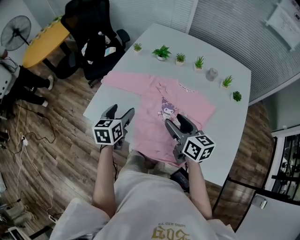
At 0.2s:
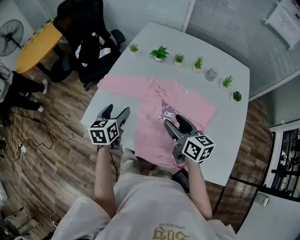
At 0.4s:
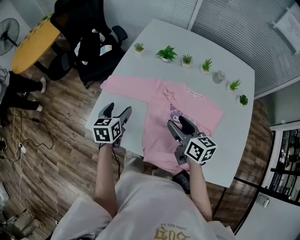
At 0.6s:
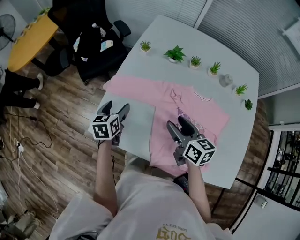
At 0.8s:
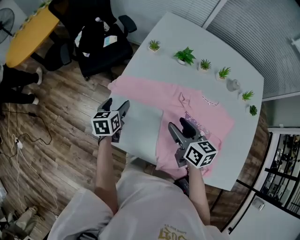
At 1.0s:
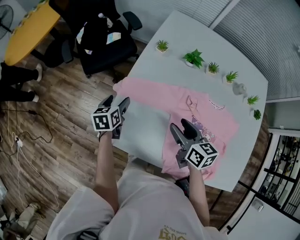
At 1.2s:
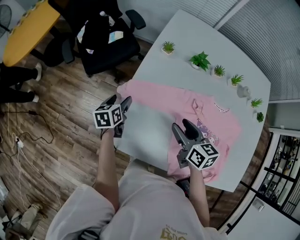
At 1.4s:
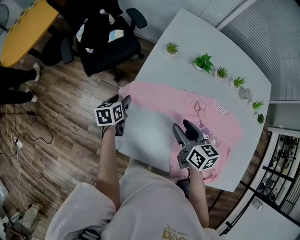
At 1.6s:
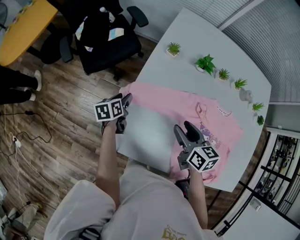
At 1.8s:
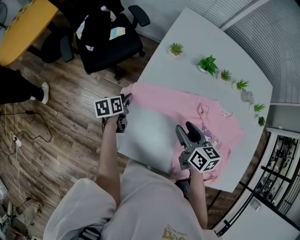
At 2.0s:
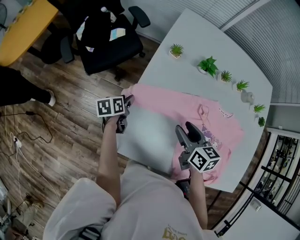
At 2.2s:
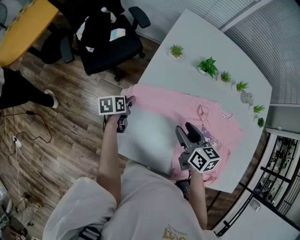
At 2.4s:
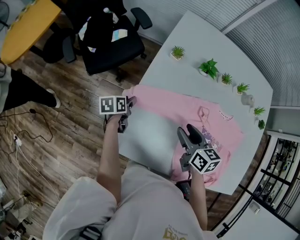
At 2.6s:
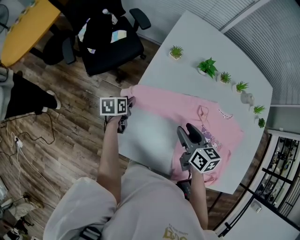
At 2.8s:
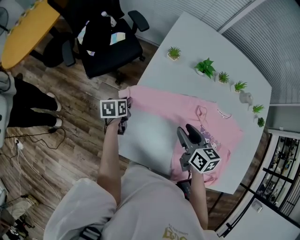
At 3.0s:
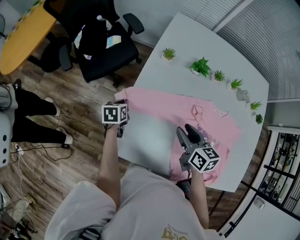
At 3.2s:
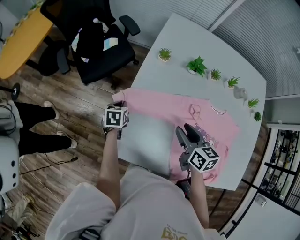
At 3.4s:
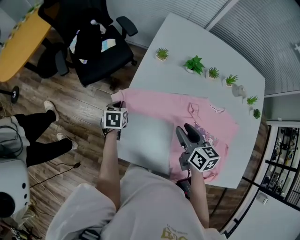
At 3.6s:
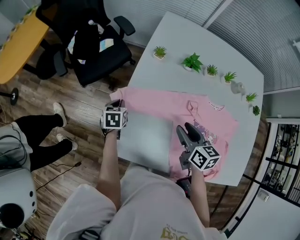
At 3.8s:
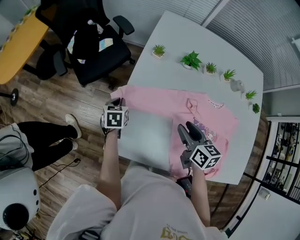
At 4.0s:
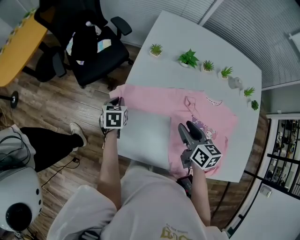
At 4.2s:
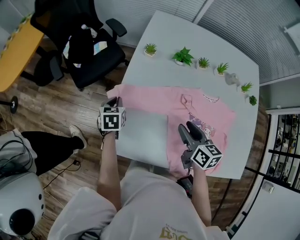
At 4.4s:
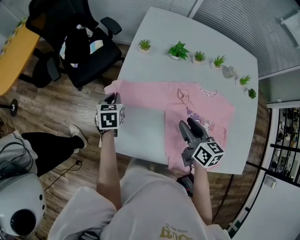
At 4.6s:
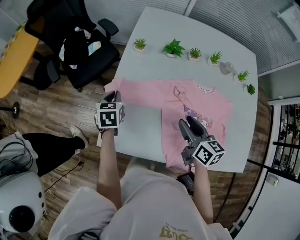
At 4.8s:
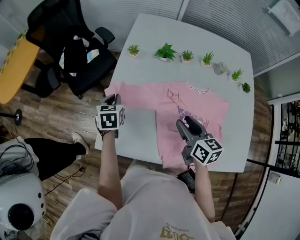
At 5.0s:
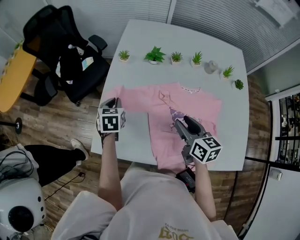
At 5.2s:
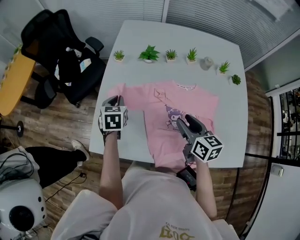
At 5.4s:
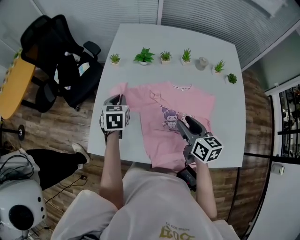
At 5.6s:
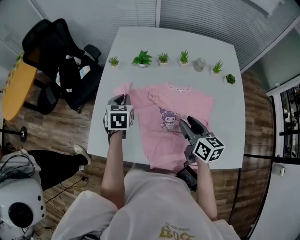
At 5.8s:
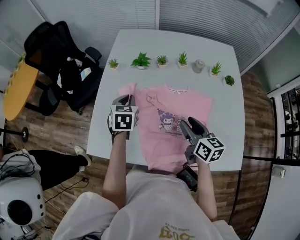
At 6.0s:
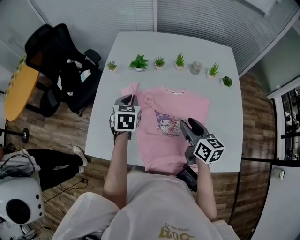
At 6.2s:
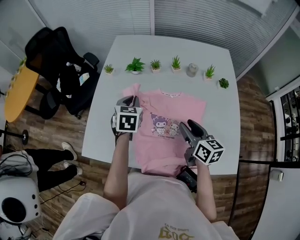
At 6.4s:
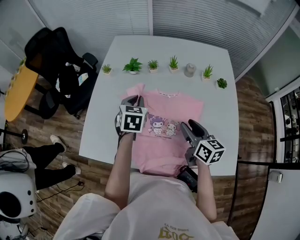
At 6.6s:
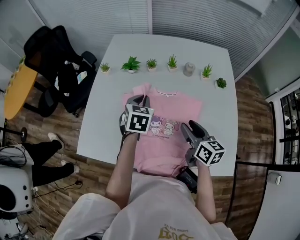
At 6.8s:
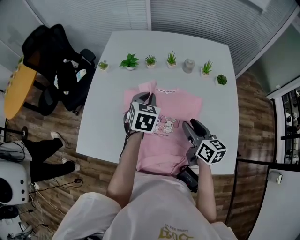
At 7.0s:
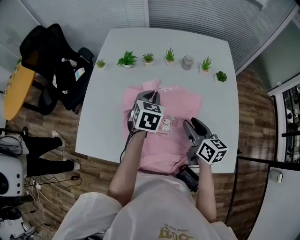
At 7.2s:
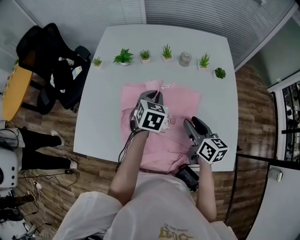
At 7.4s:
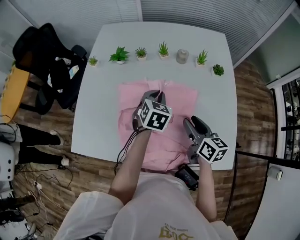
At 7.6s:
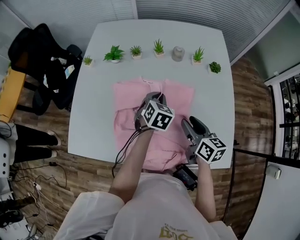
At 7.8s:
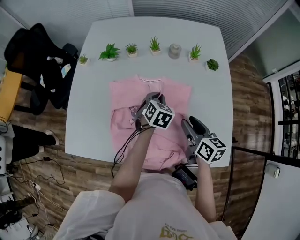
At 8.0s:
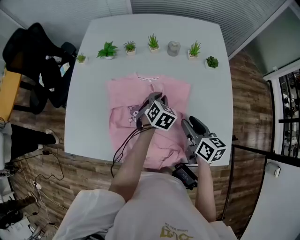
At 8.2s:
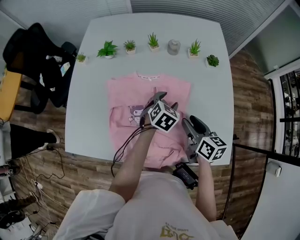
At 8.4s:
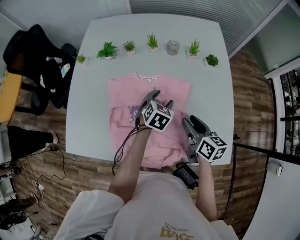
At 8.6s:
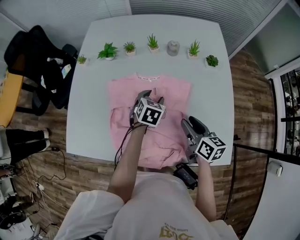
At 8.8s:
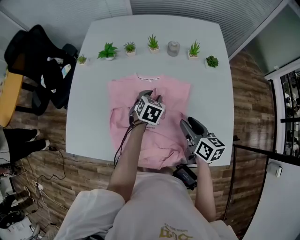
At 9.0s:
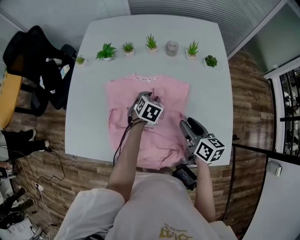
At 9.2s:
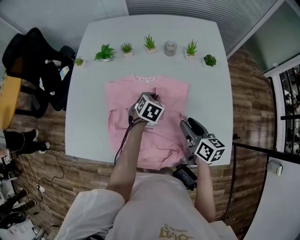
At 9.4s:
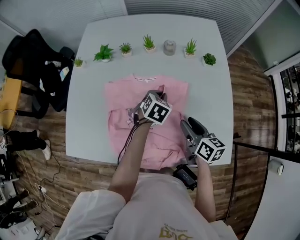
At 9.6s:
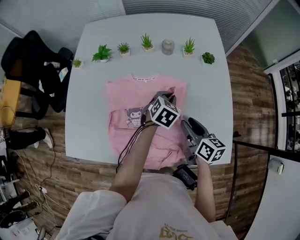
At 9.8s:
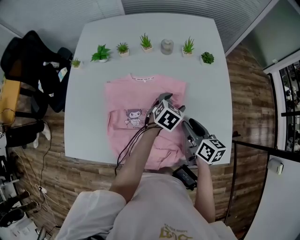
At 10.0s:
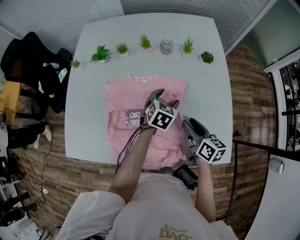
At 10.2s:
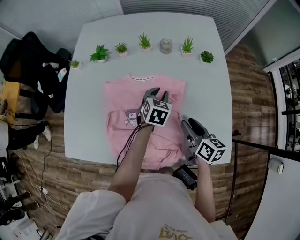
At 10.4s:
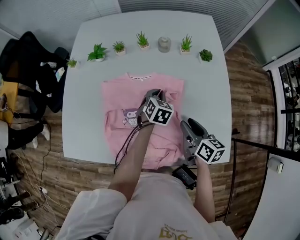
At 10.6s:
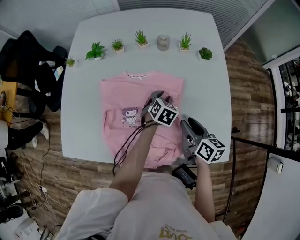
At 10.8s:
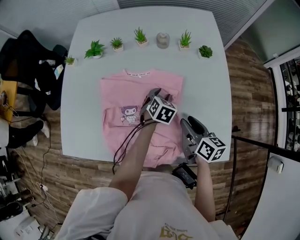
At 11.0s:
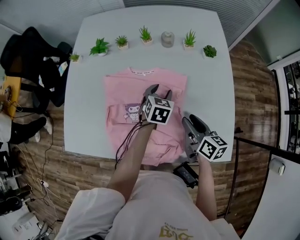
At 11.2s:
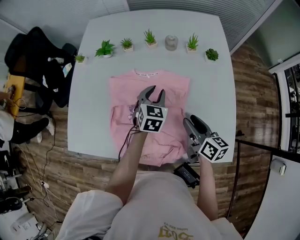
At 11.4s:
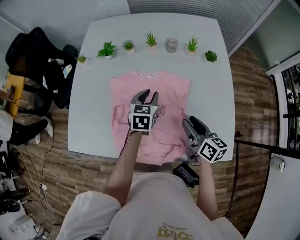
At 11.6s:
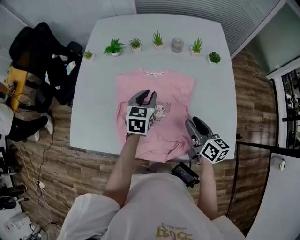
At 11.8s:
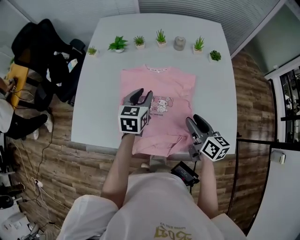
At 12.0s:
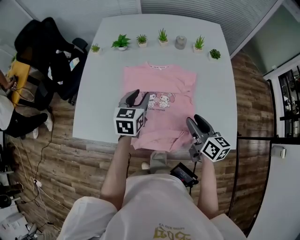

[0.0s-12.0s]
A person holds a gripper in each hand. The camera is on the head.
0.0s to 1.6s: The two grippers go about 35 cm forward, to the left and downward. The left gripper turns by roughly 30 degrees, and closes up.
1.6s to 3.0s: The left gripper closes up.
3.0s to 4.4s: The right gripper moves to the right and backward, some 10 cm; the left gripper moves upward, approximately 10 cm, and turns by roughly 20 degrees.
4.4s to 6.0s: The left gripper moves to the right and upward, approximately 30 cm. The right gripper shifts some 20 cm to the right.
6.0s to 7.6s: The left gripper is displaced to the right by approximately 25 cm, while the right gripper goes roughly 10 cm to the right.
7.6s to 9.0s: The left gripper heads downward, covering about 10 cm, and opens, then closes once more.
9.0s to 10.4s: The left gripper moves to the right, some 5 cm, and opens and closes again.
10.4s to 12.0s: The left gripper shifts roughly 25 cm to the left, upward and backward, changes its angle by some 30 degrees, and opens its fingers; the right gripper travels backward, to the left and upward by some 10 cm.

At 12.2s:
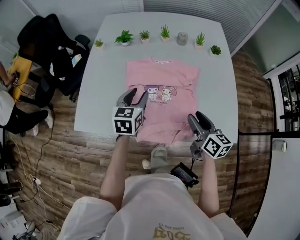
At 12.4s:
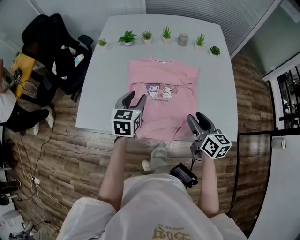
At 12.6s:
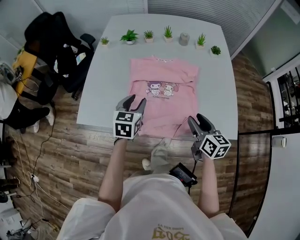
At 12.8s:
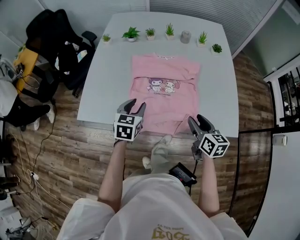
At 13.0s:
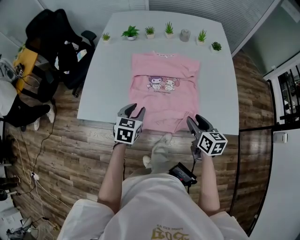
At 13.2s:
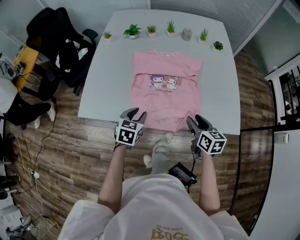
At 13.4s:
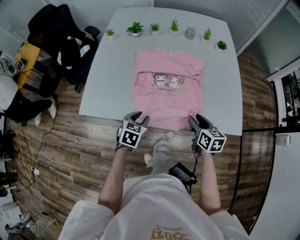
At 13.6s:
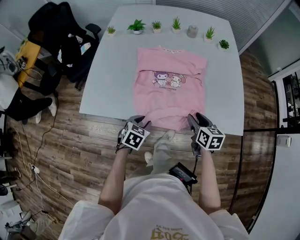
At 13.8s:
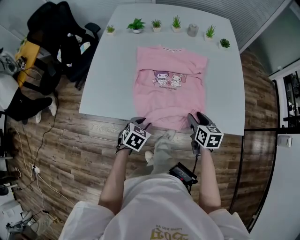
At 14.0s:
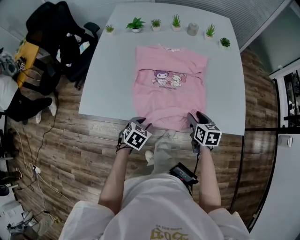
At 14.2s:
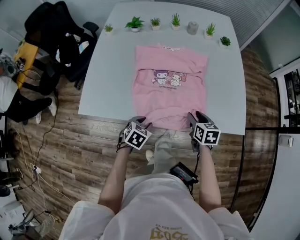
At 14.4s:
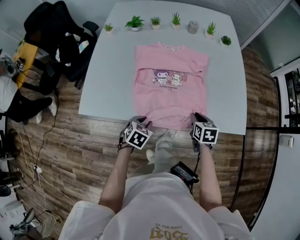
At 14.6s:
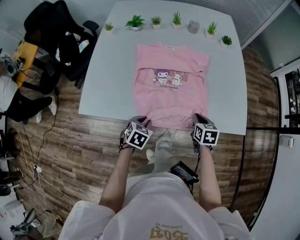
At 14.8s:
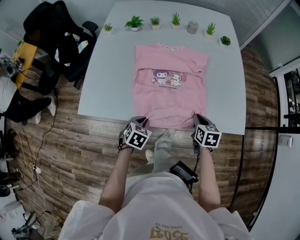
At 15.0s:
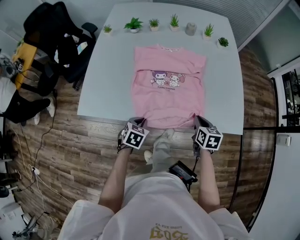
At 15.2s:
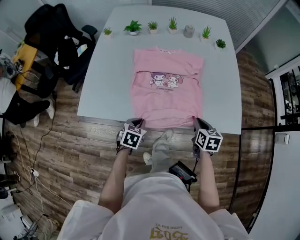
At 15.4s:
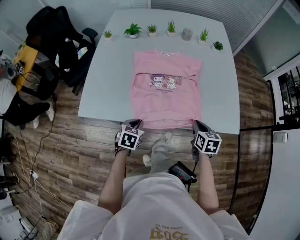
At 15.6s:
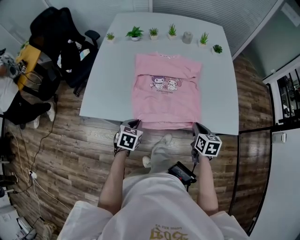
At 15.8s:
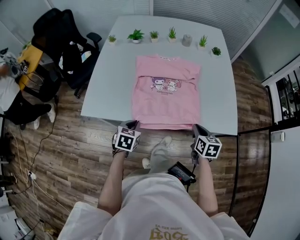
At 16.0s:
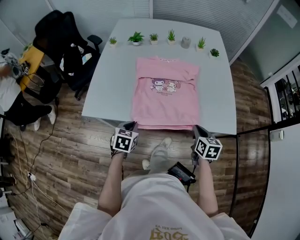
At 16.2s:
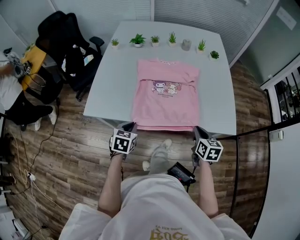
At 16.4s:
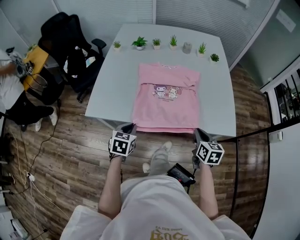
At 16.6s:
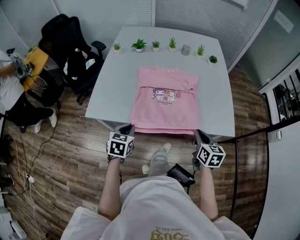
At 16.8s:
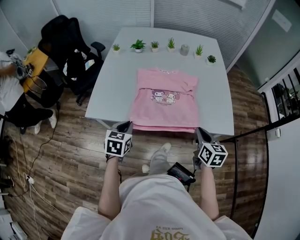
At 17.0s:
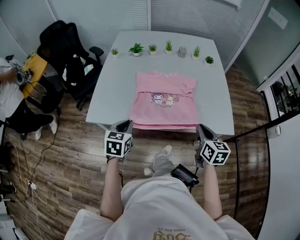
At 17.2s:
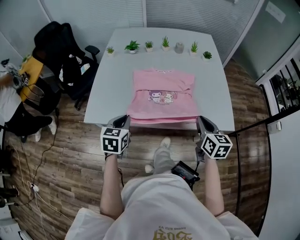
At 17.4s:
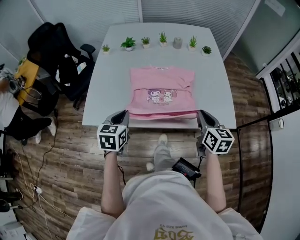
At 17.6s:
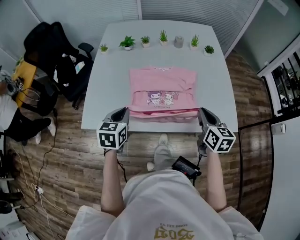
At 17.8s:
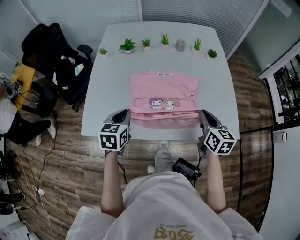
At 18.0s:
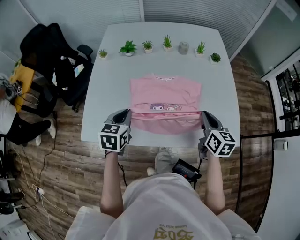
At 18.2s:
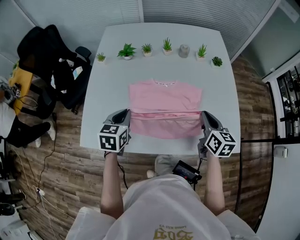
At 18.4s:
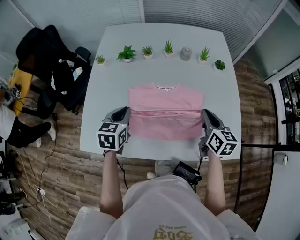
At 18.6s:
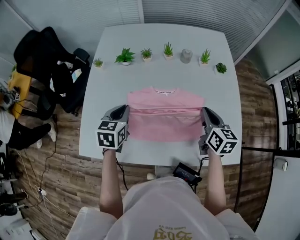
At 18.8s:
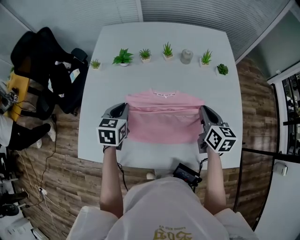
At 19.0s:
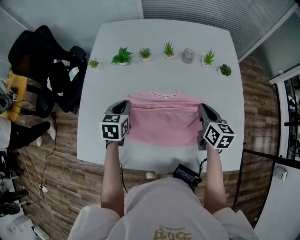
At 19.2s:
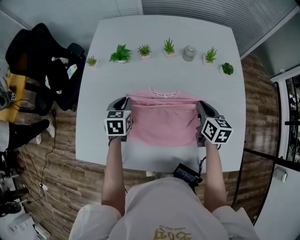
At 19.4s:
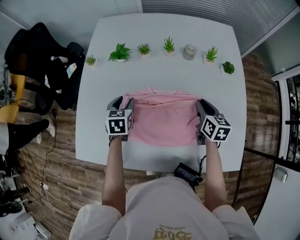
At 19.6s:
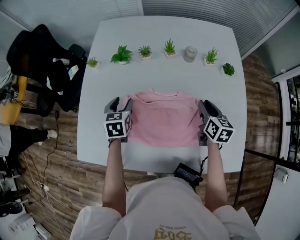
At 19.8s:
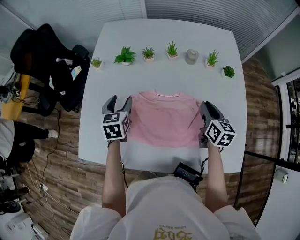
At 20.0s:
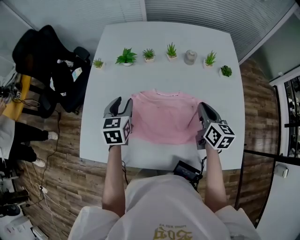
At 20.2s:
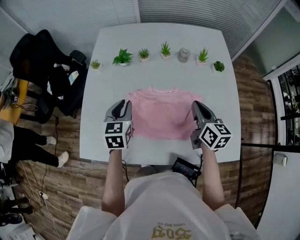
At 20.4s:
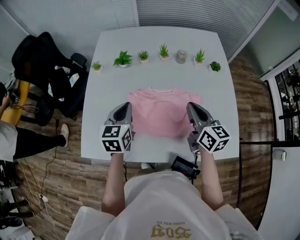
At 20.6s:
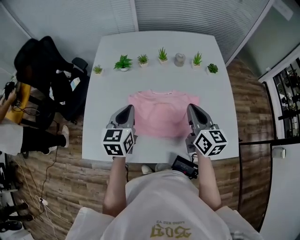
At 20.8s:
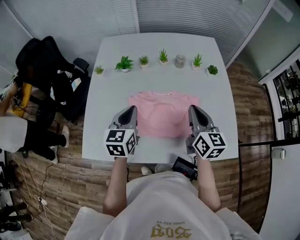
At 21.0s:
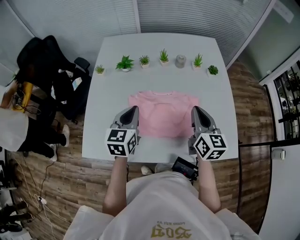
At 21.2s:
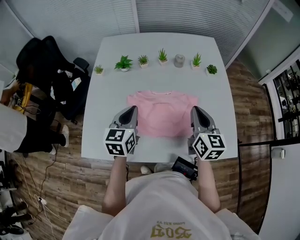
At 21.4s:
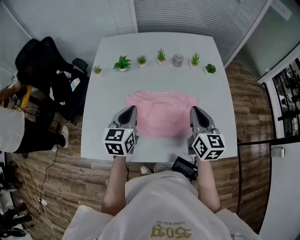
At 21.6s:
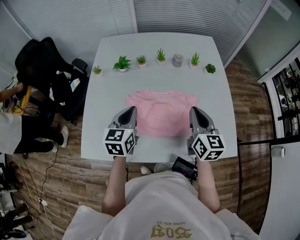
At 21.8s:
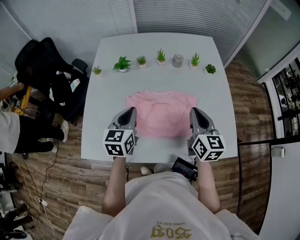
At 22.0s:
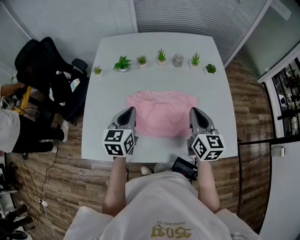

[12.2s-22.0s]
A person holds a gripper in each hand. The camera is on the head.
12.2s to 13.6s: The left gripper heads backward and downward, covering about 25 cm, and turns by approximately 30 degrees. Meanwhile the right gripper shifts about 10 cm downward and backward.
13.6s to 15.0s: The right gripper closes.
15.0s to 16.4s: The right gripper shifts roughly 10 cm upward and backward; the left gripper heads upward, backward and to the left, covering approximately 15 cm.
16.4s to 17.8s: Both grippers move forward and upward, some 15 cm.
17.8s to 19.2s: Both grippers travel together forward, roughly 25 cm.
19.2s to 20.6s: The right gripper is displaced upward, backward and to the left by approximately 20 cm, and rotates some 20 degrees, while the left gripper travels upward and backward by some 20 cm, rotates some 20 degrees, and opens, then closes once more.
20.6s to 22.0s: The grippers stay close to where they were, moving slightly.

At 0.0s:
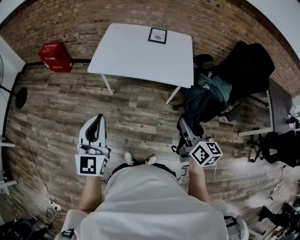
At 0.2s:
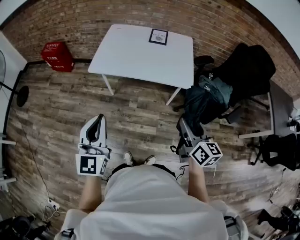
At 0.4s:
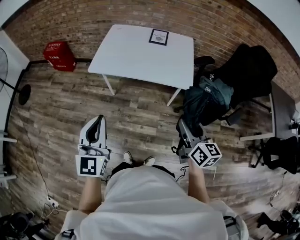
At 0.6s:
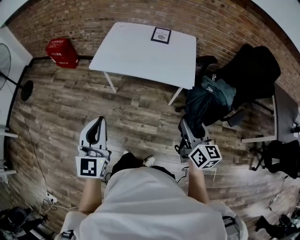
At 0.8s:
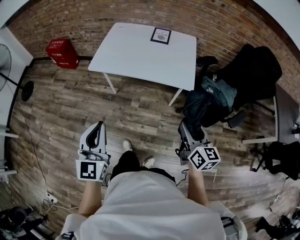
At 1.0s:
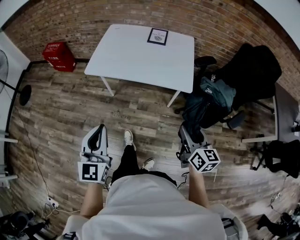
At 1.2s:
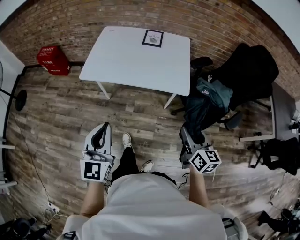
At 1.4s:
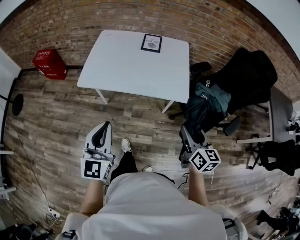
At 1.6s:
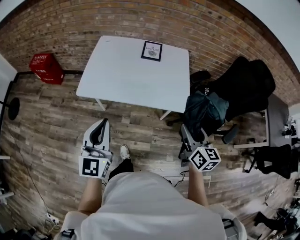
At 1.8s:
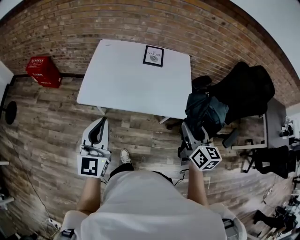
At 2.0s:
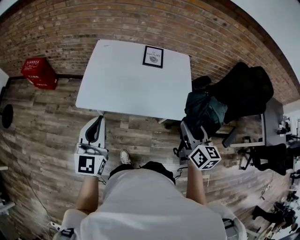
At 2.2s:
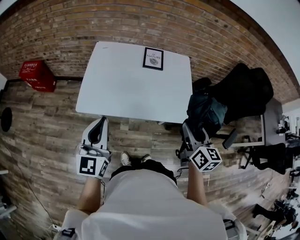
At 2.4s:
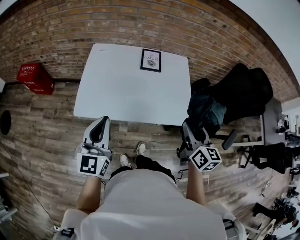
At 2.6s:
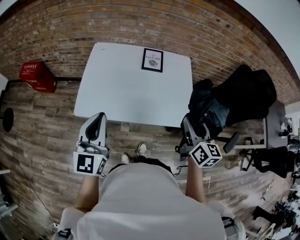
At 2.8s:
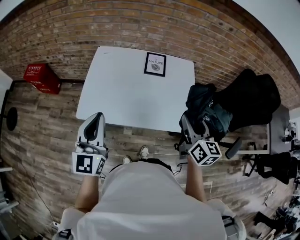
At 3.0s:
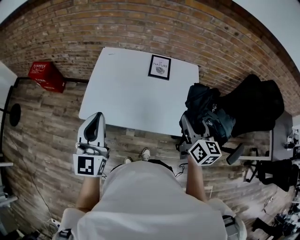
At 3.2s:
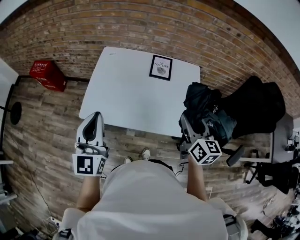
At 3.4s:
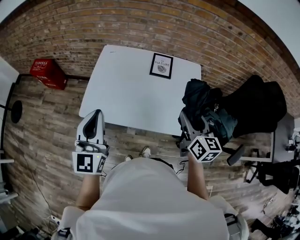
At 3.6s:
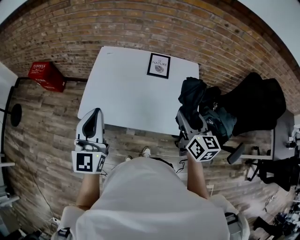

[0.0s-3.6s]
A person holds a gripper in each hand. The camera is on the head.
0.0s to 1.8s: Both grippers move forward, roughly 20 cm.
1.8s to 3.6s: The two grippers go about 15 cm forward.
